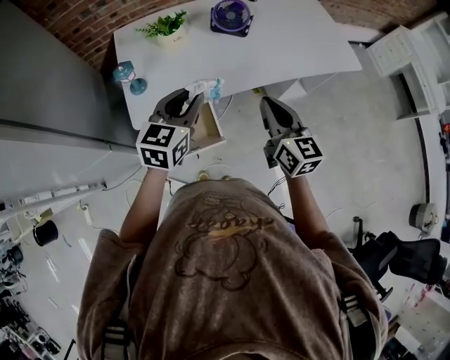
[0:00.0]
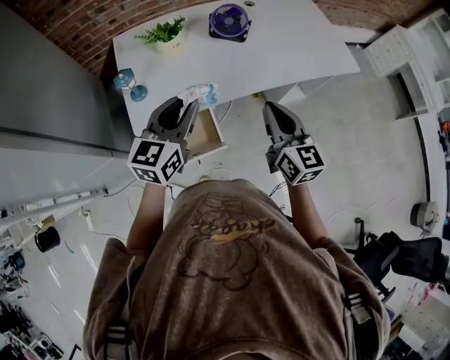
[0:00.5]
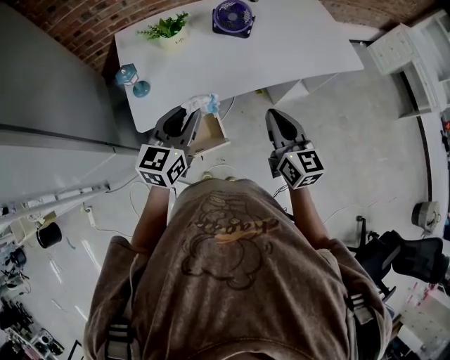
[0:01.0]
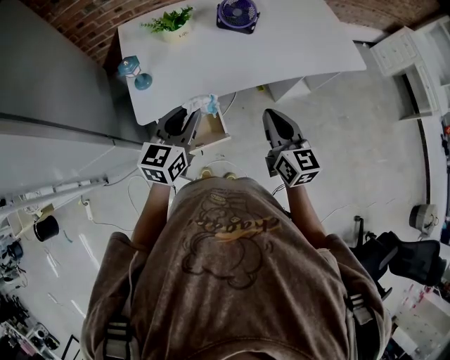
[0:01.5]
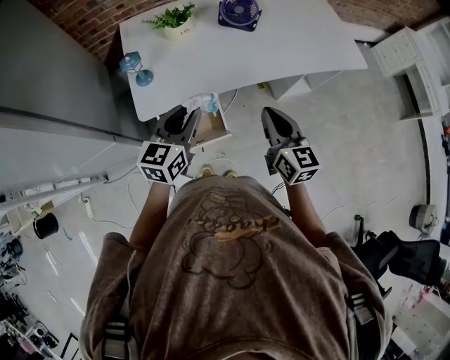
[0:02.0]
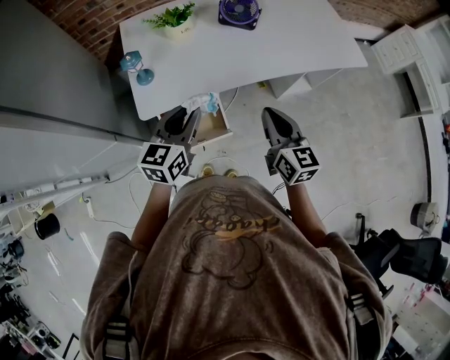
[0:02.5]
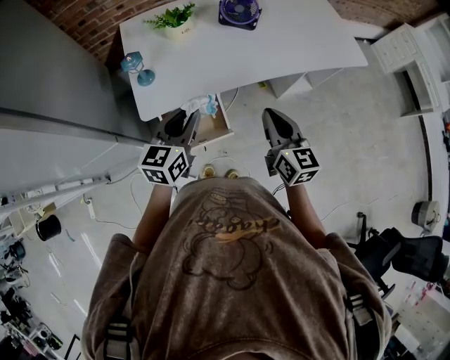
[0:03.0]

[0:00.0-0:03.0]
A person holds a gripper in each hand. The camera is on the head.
0:00.0 to 0:01.5: The left gripper changes place by roughly 5 cm.
0:01.5 to 0:03.0: The grippers move only a little.

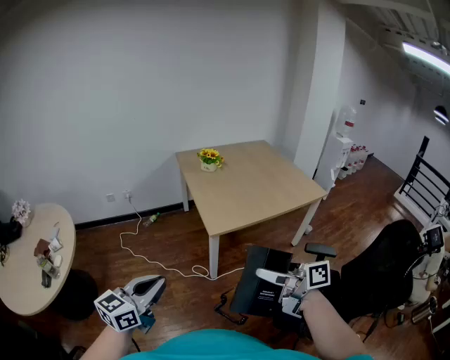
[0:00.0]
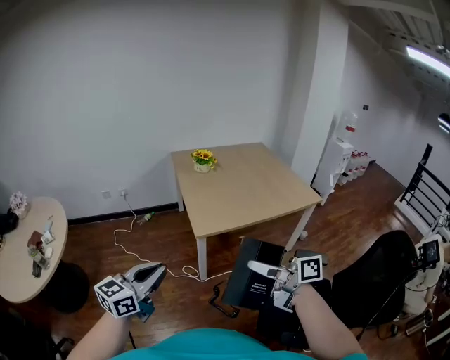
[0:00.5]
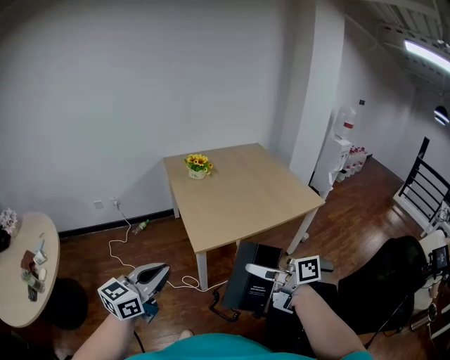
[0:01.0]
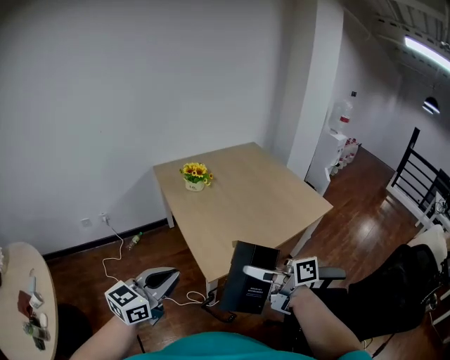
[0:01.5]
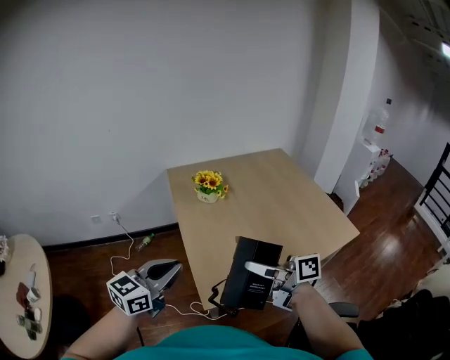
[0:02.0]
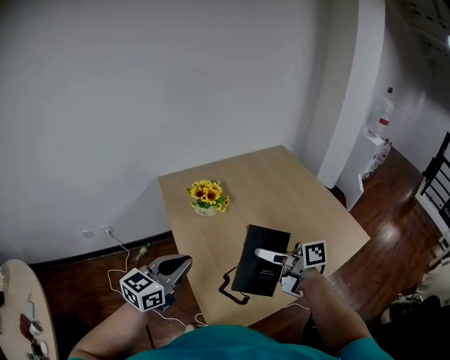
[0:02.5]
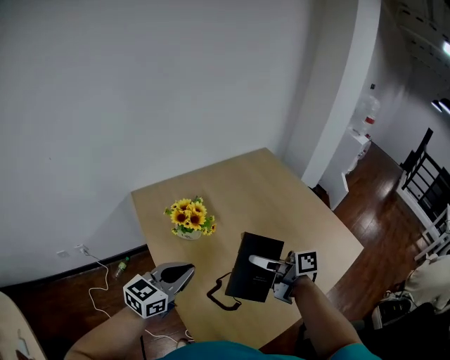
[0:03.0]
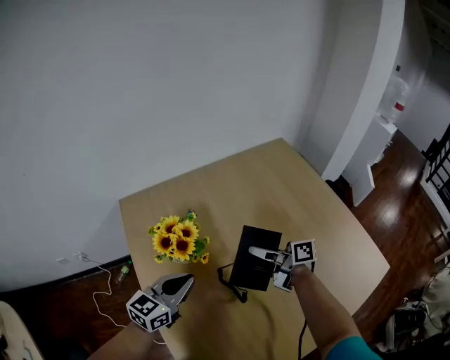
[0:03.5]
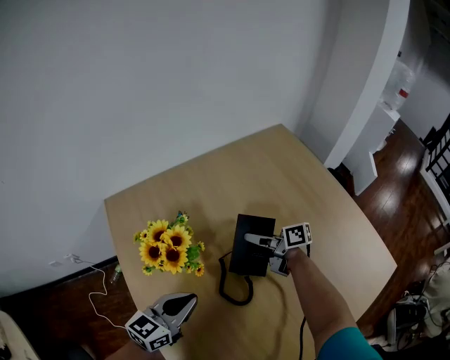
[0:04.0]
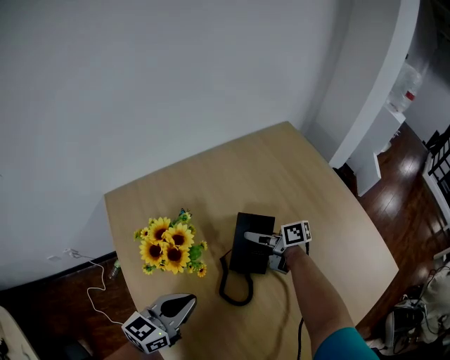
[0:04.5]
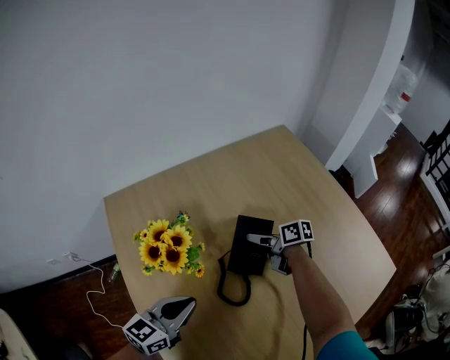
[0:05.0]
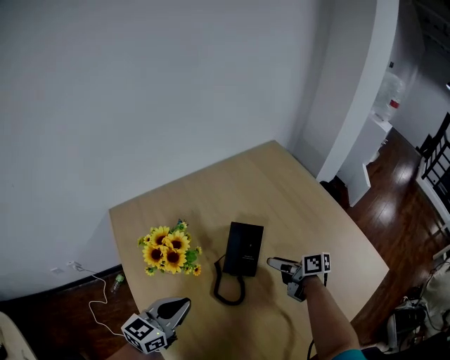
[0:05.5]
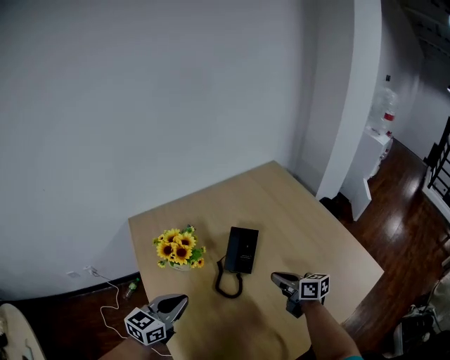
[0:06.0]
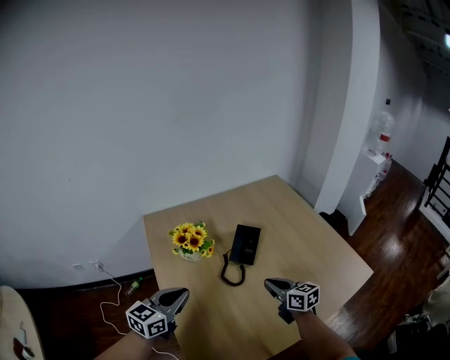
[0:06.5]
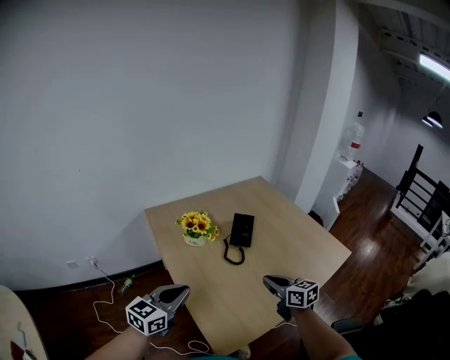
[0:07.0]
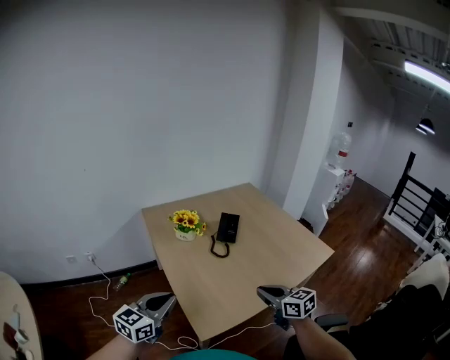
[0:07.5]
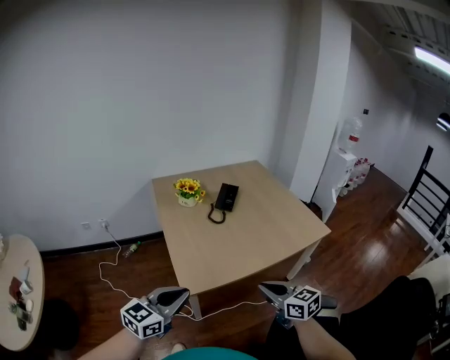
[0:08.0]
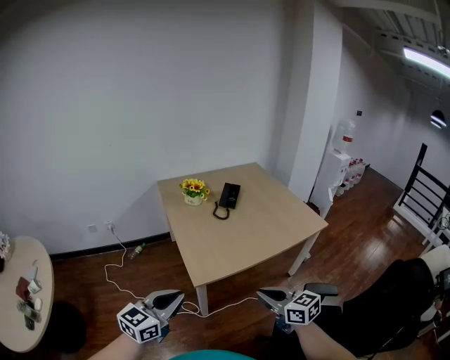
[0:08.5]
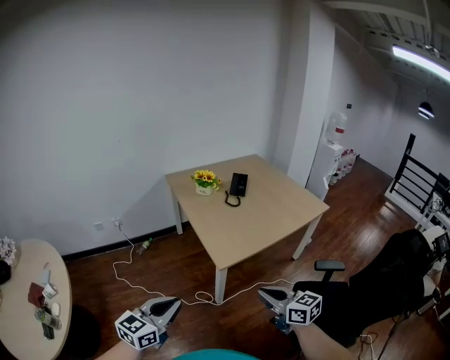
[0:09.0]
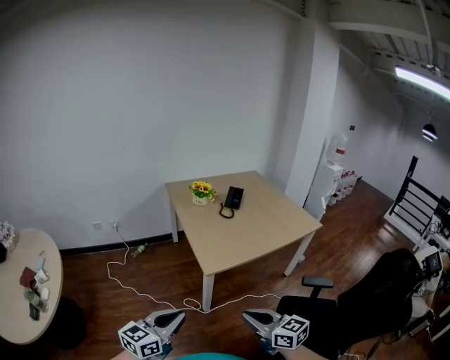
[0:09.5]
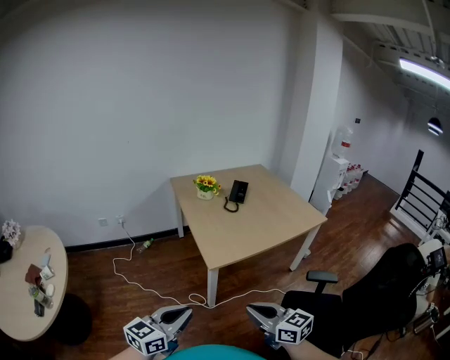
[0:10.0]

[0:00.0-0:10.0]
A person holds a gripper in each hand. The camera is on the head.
0:00.0 to 0:02.0: Both grippers are carried forward, some 50 cm.
0:02.0 to 0:04.0: The two grippers travel together, forward, about 50 cm. Both grippers travel together downward, some 25 cm.
0:04.0 to 0:06.0: The right gripper moves backward and to the right, some 20 cm, swivels about 30 degrees, and closes its fingers. The left gripper moves upward and backward, some 10 cm.
0:06.0 to 0:08.0: Both grippers are carried backward, some 50 cm. The right gripper turns by roughly 30 degrees.
0:08.0 to 0:10.0: Both grippers travel together backward and to the left, about 30 cm.

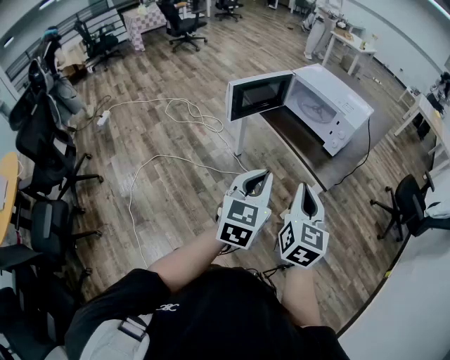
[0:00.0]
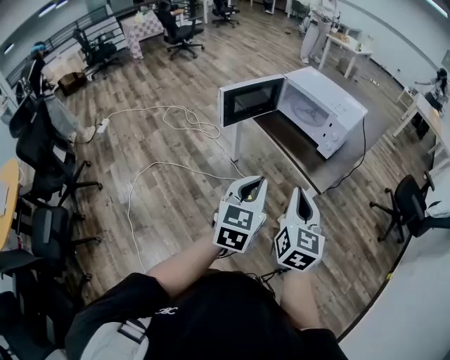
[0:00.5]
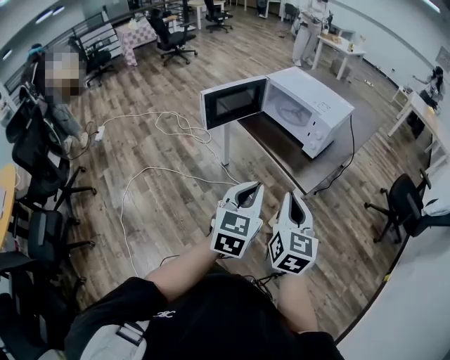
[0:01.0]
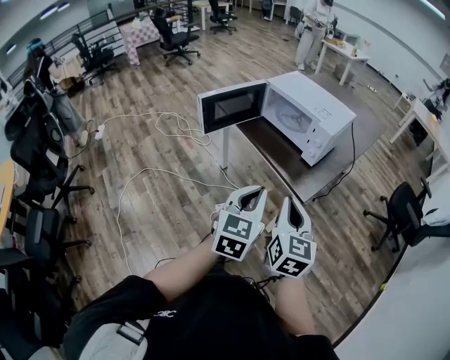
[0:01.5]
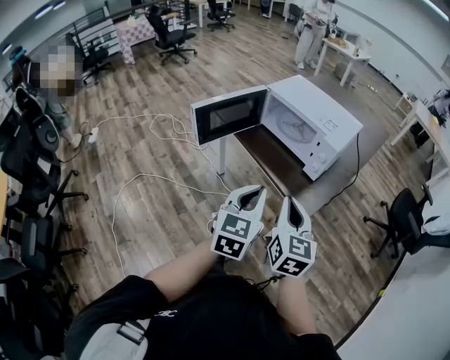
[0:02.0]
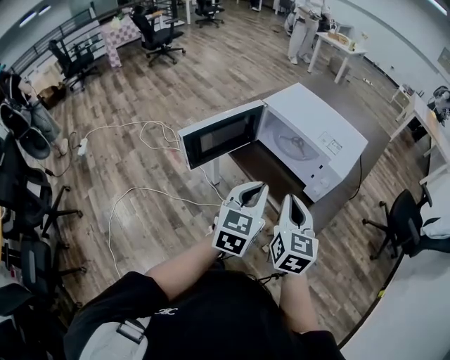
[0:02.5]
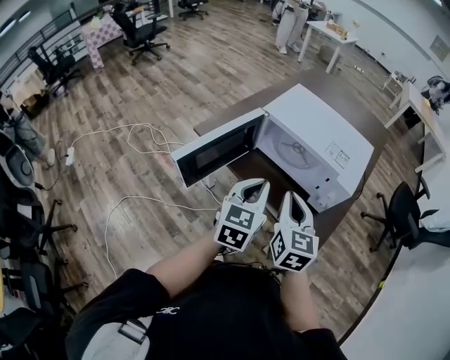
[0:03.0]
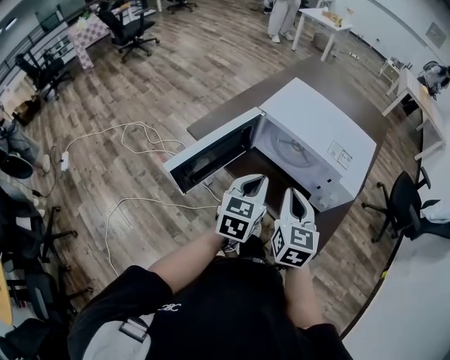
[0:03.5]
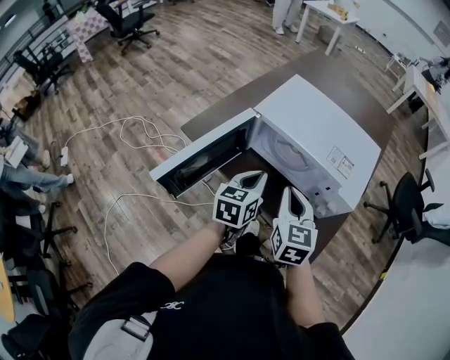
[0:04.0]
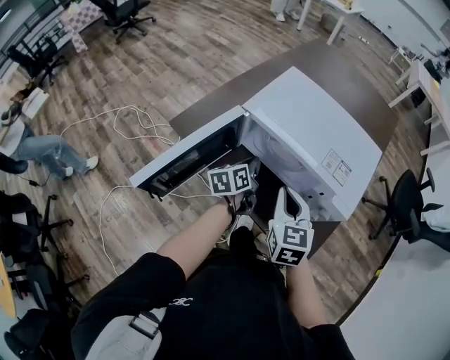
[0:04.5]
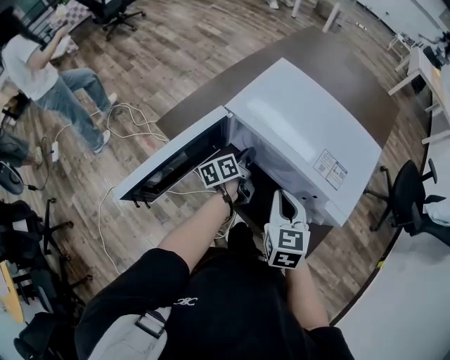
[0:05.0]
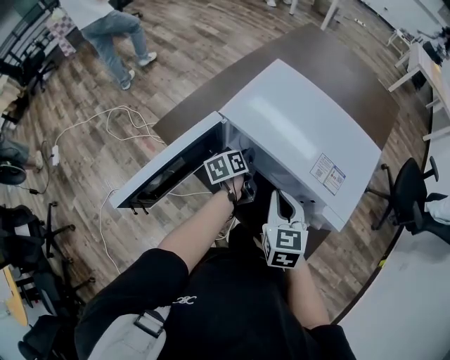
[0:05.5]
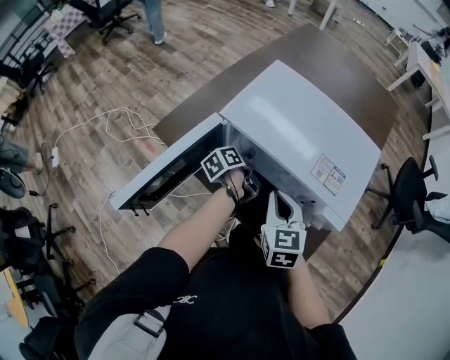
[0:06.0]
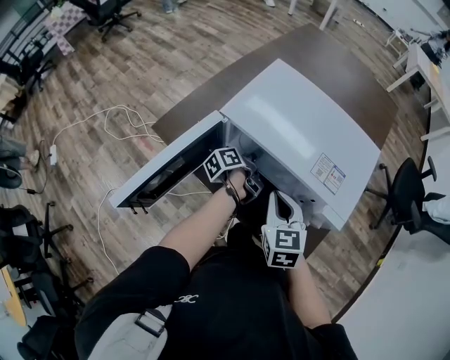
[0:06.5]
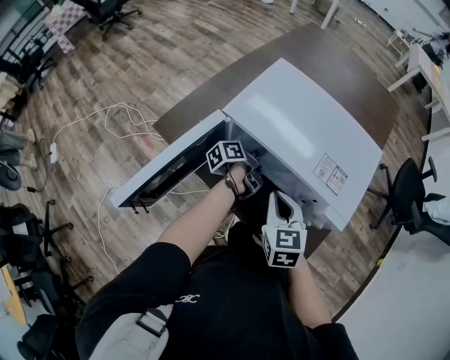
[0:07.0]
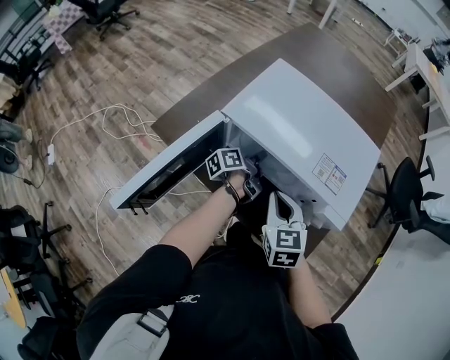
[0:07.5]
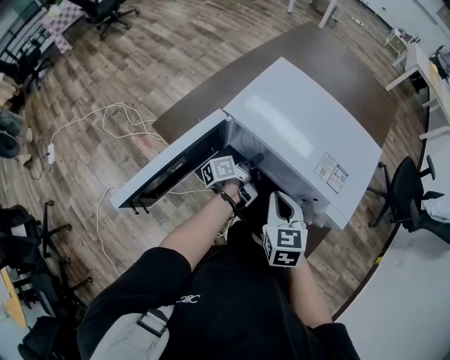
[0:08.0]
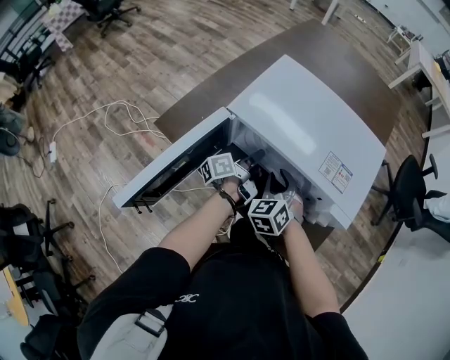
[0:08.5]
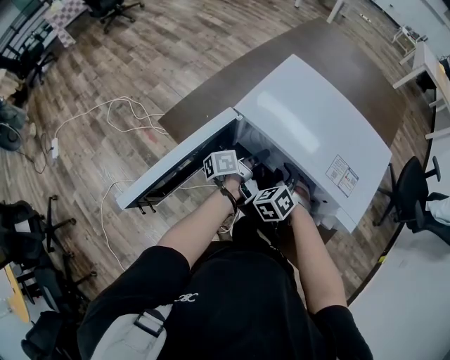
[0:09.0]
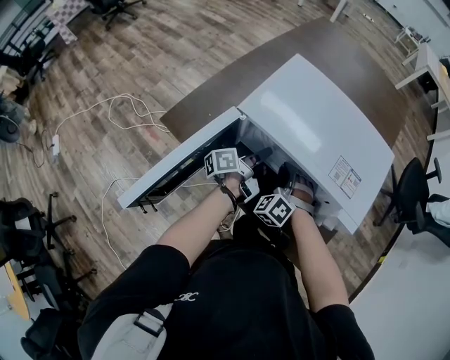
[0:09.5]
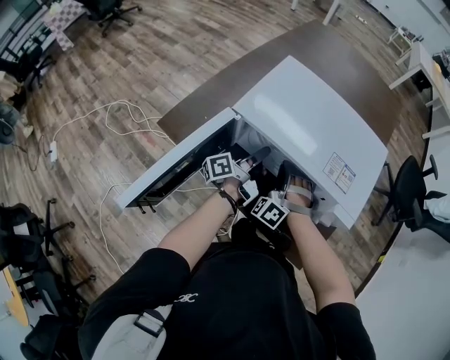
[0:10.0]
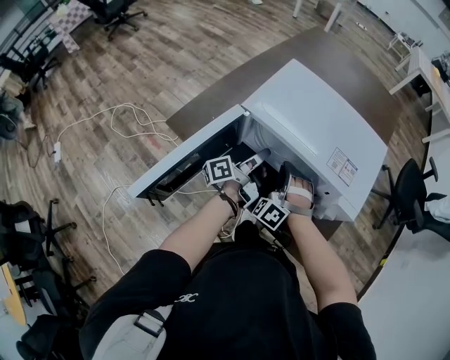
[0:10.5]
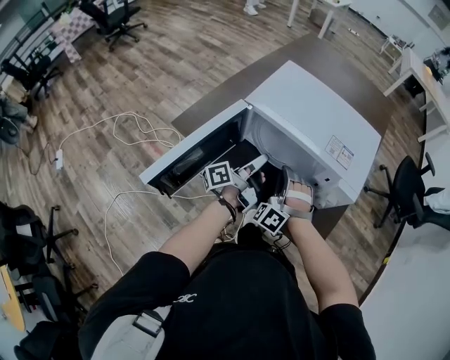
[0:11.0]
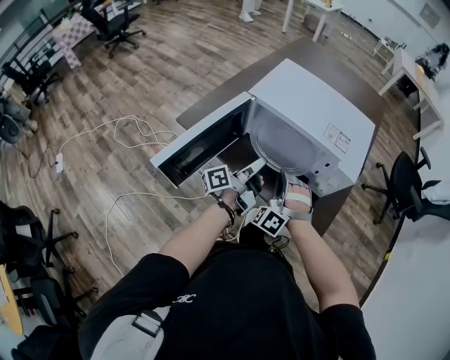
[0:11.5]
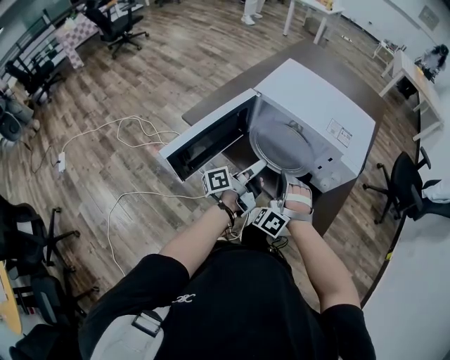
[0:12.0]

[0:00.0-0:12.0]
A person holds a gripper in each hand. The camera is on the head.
0:00.0 to 0:02.0: Both grippers travel together forward and to the right, roughly 15 cm.
0:02.0 to 0:04.0: Both grippers travel together forward, approximately 35 cm. The left gripper changes its angle by about 20 degrees.
0:04.0 to 0:06.0: The right gripper heads forward and downward, covering roughly 10 cm; the left gripper is displaced forward and downward by about 25 cm, and rotates around the line of its fingers by about 50 degrees, counterclockwise from behind.
0:06.0 to 0:08.0: The left gripper rotates about 30 degrees.
0:08.0 to 0:10.0: The left gripper moves about 5 cm. Meanwhile the right gripper heads forward and downward, covering roughly 10 cm, and twists about 70 degrees counterclockwise, seen from behind.
0:10.0 to 0:12.0: The grippers both shift backward by approximately 20 cm.

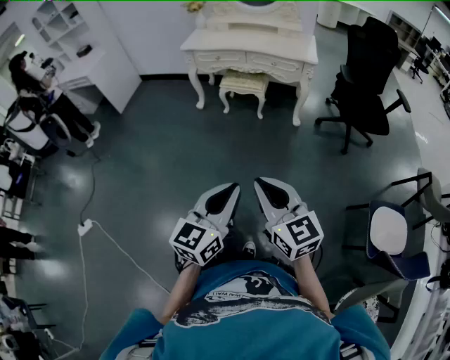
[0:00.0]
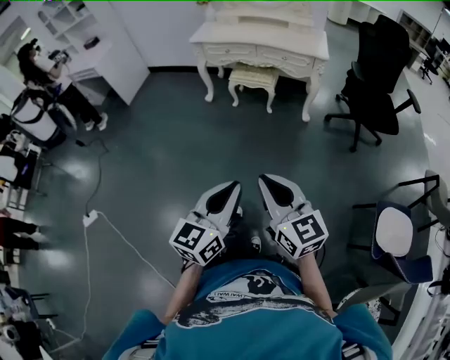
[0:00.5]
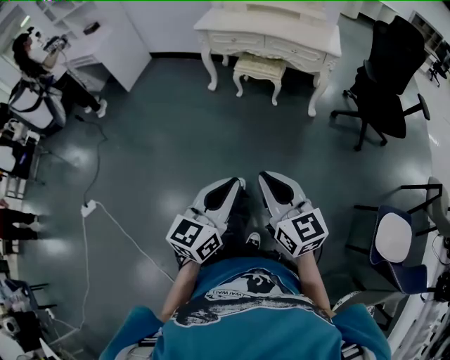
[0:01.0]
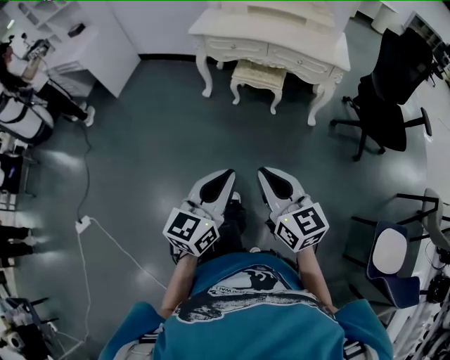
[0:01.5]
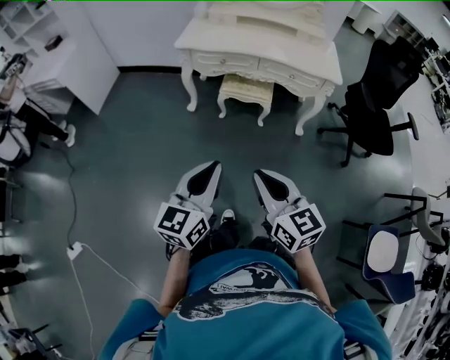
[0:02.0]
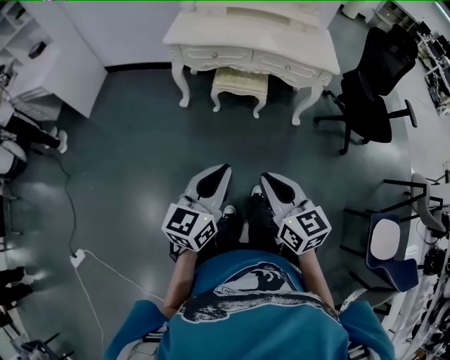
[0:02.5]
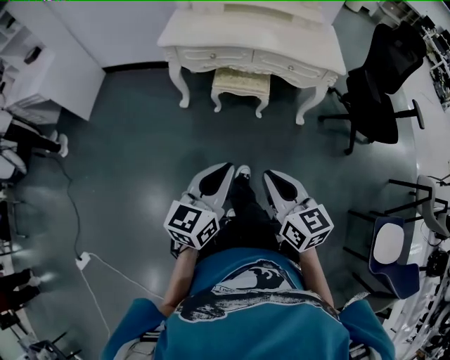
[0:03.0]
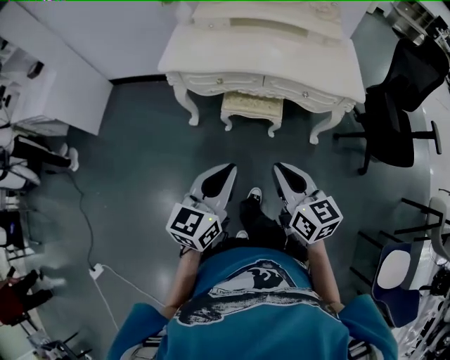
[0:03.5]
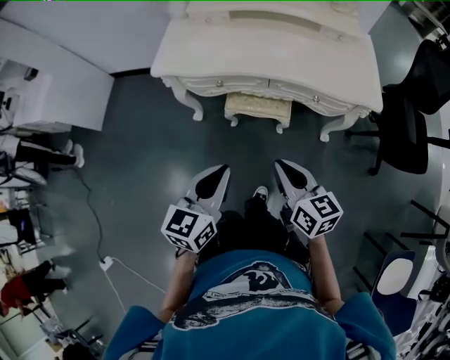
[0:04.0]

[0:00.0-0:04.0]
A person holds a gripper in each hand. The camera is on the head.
0:00.0 to 0:02.0: The right gripper goes about 30 cm forward; the left gripper shifts some 40 cm forward and to the left.
0:02.0 to 0:04.0: The grippers both shift forward by about 35 cm.
